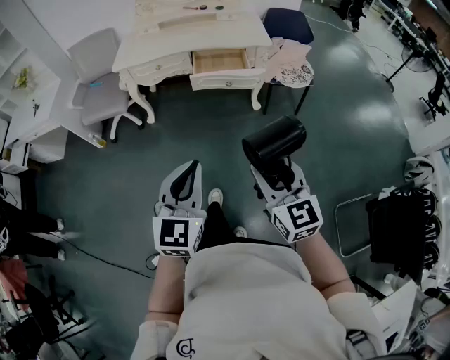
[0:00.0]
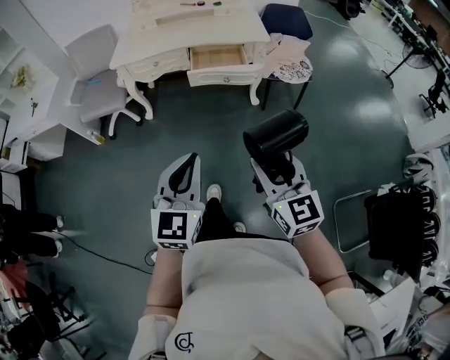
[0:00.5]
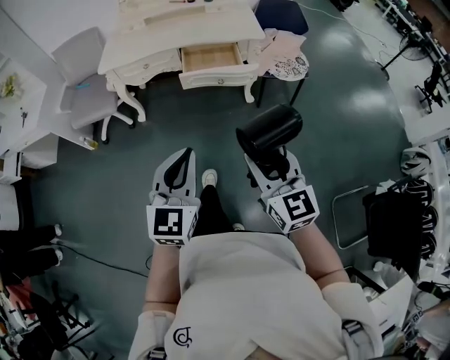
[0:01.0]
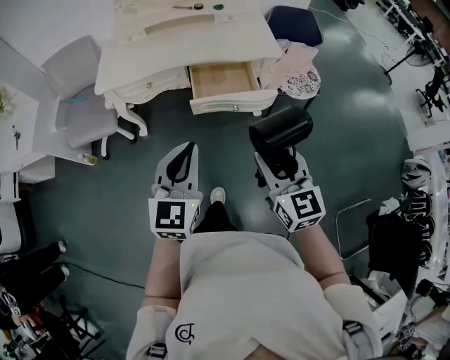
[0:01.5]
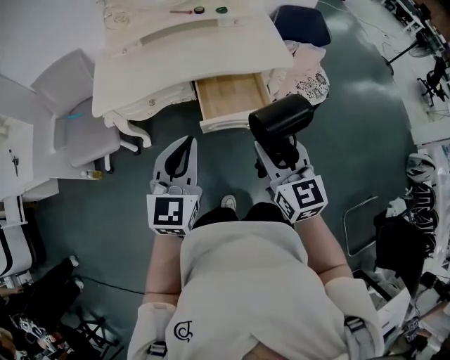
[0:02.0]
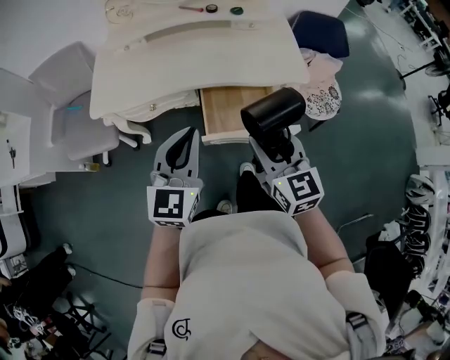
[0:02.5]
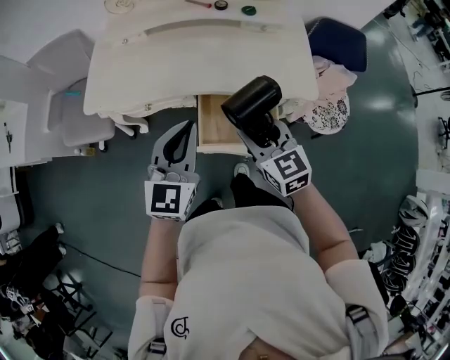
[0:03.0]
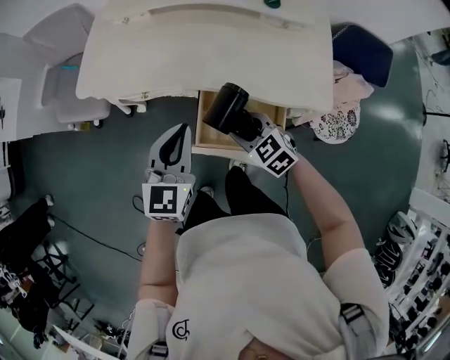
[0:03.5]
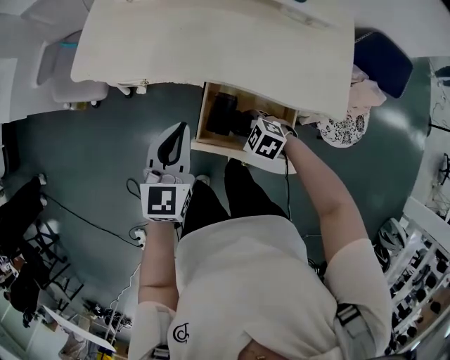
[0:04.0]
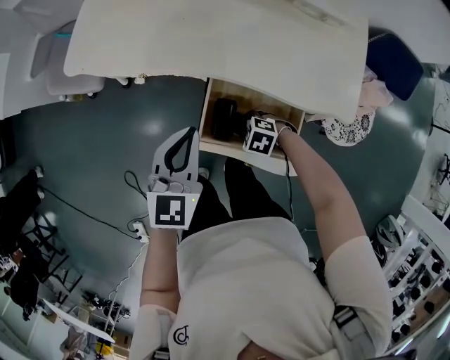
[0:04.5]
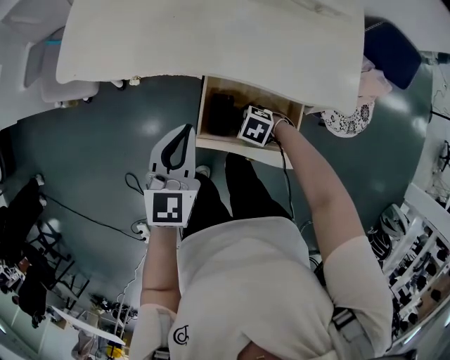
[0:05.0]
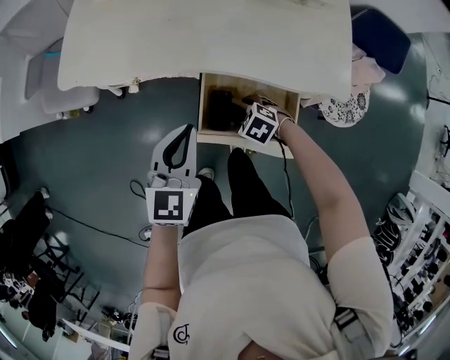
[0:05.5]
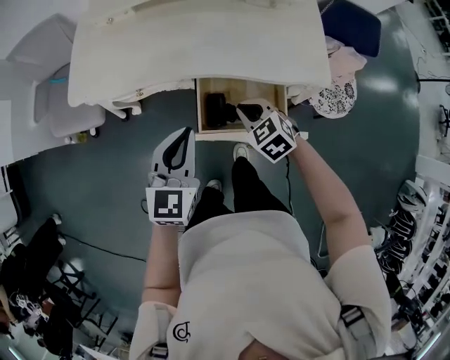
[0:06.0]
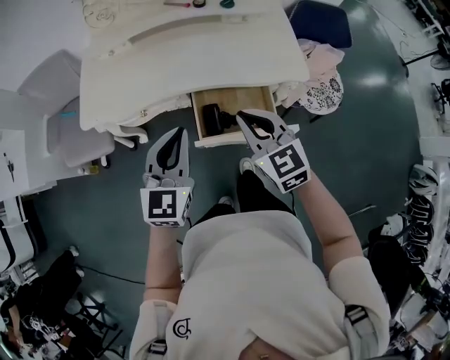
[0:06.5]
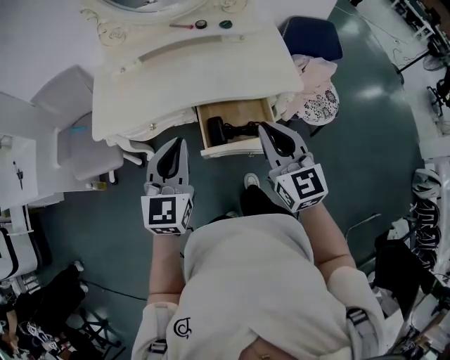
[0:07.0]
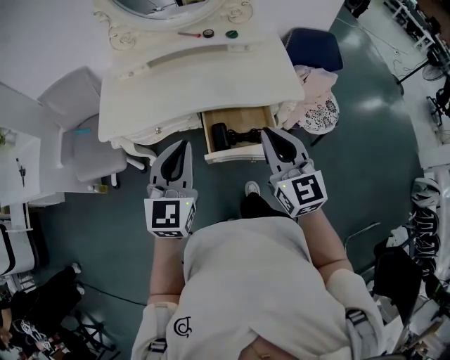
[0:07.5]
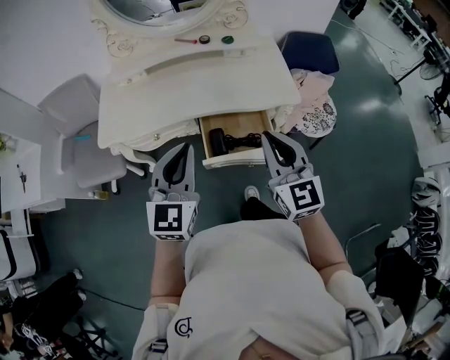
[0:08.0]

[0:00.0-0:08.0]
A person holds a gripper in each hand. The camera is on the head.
0:00.0 to 0:02.0: Both grippers move forward, some 40 cm.
0:02.0 to 0:04.0: The right gripper is displaced downward by approximately 35 cm, and points its fingers approximately 50 degrees further downward, while the left gripper shifts by about 25 cm, and swivels some 30 degrees.
0:04.0 to 0:06.0: The right gripper is displaced upward by approximately 10 cm, changes its angle by some 40 degrees, and closes.
0:06.0 to 0:08.0: The right gripper shifts about 30 cm upward and backward, and points its fingers some 50 degrees further upward; the left gripper travels upward and backward by about 15 cm.

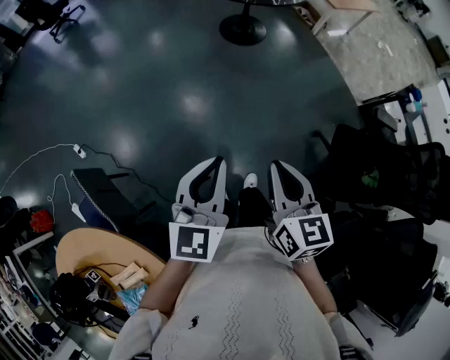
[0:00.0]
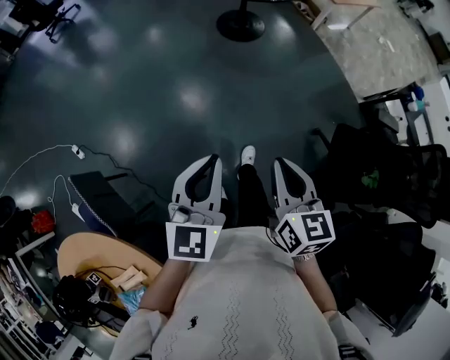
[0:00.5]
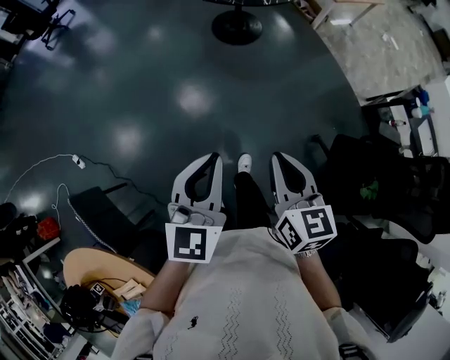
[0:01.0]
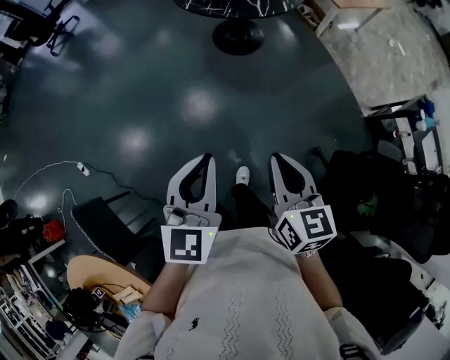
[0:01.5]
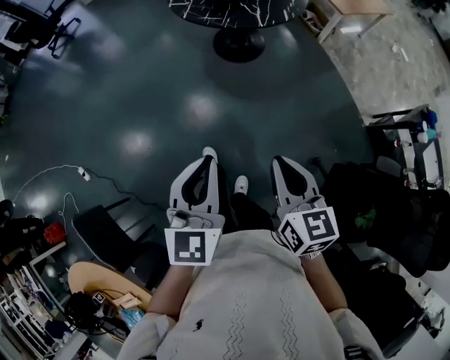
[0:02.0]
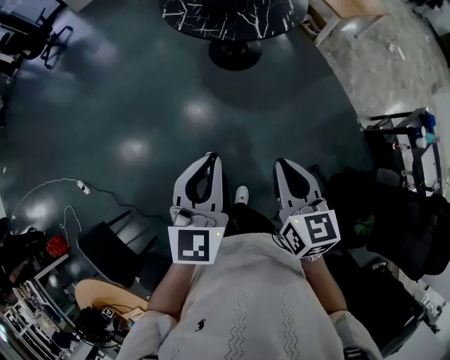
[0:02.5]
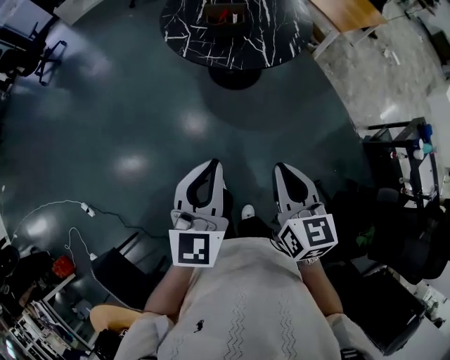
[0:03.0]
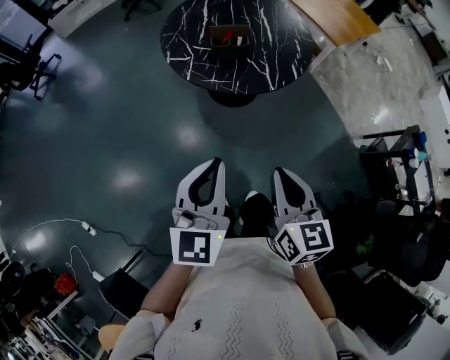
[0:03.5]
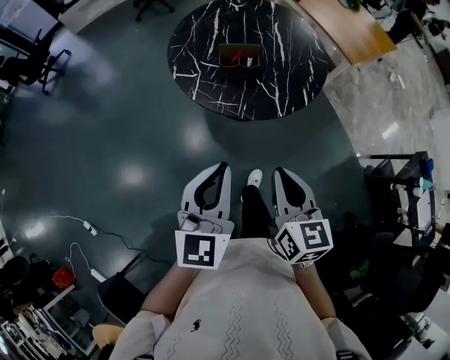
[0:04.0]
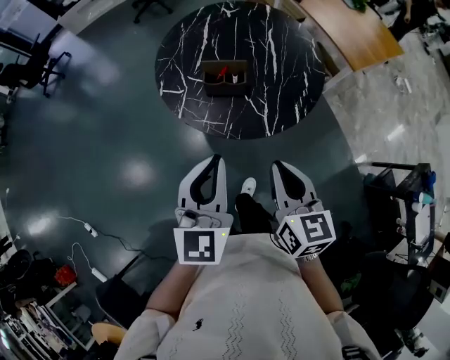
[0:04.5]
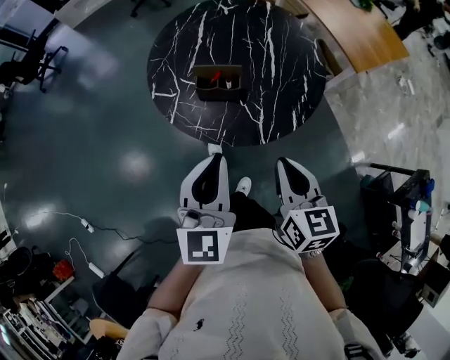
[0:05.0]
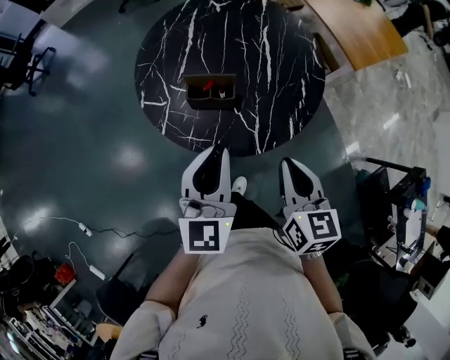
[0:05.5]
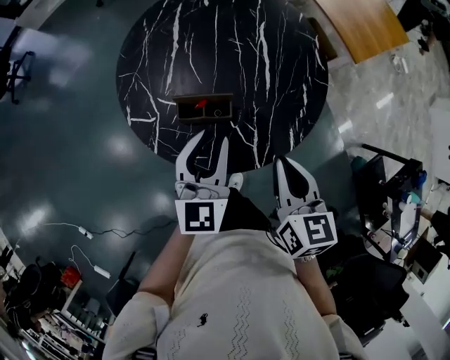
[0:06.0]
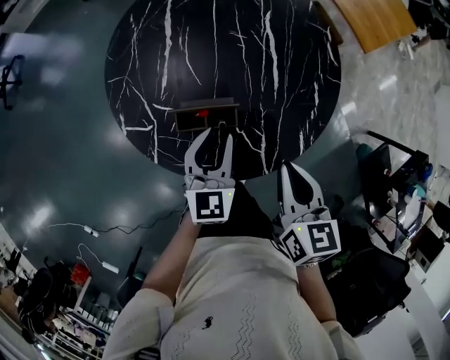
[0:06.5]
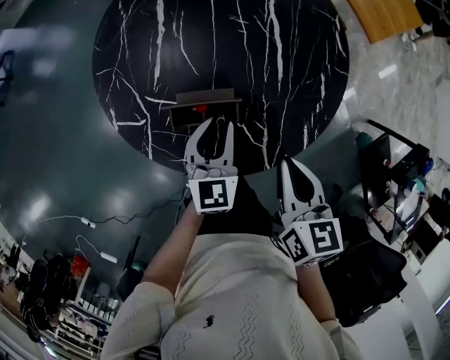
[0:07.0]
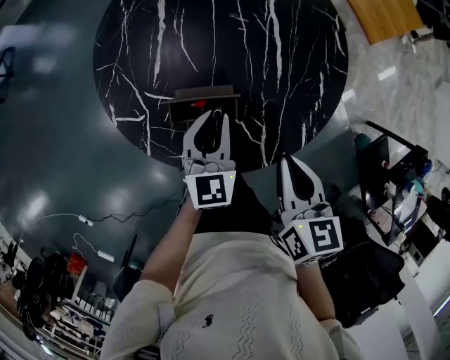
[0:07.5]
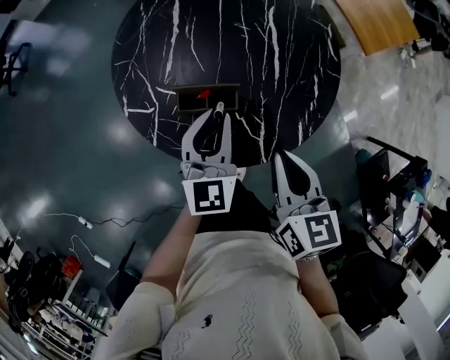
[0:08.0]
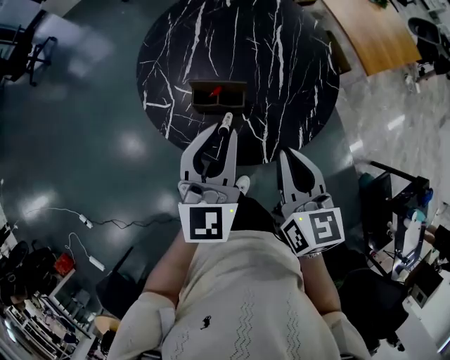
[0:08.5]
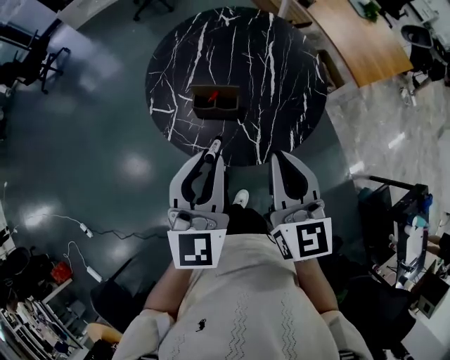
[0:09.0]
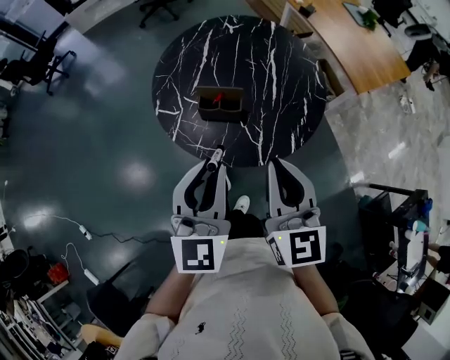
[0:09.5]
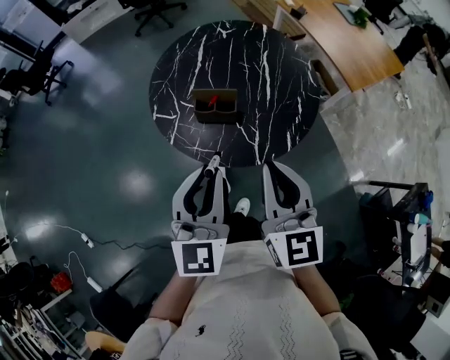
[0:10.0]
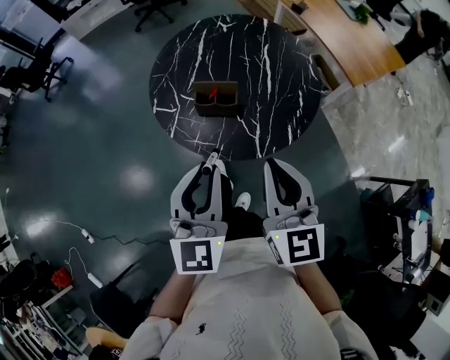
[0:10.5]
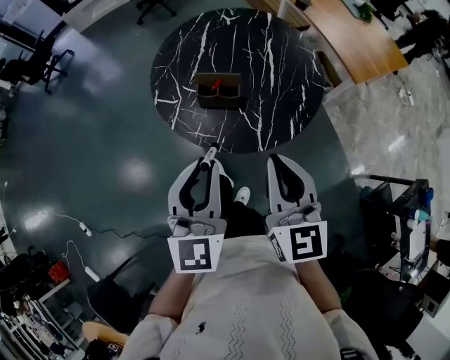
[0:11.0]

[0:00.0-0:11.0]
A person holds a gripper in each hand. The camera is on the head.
0:00.0 to 0:02.0: The grippers both shift forward and to the right by approximately 35 cm.
0:02.0 to 0:03.5: Both grippers travel together forward, approximately 30 cm.
0:03.5 to 0:05.5: The grippers both shift forward and to the right by roughly 40 cm.
0:05.5 to 0:07.5: The left gripper heads downward and forward, covering roughly 30 cm; the right gripper travels forward and downward by roughly 15 cm.
0:07.5 to 0:09.0: The left gripper goes approximately 30 cm upward and backward; the right gripper shifts some 20 cm upward and backward, and turns by roughly 40 degrees.
0:09.0 to 0:11.0: The two grippers go some 10 cm backward.

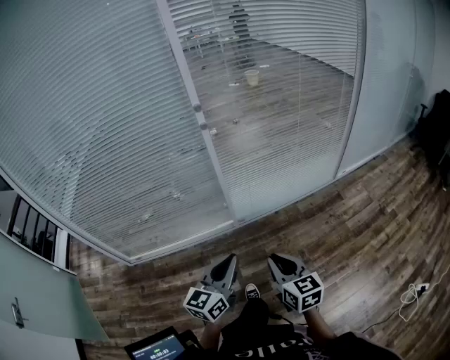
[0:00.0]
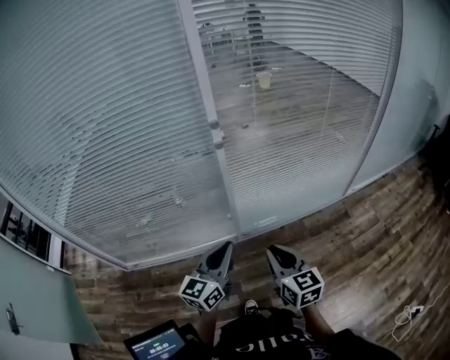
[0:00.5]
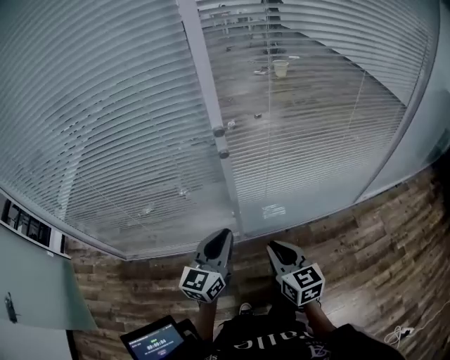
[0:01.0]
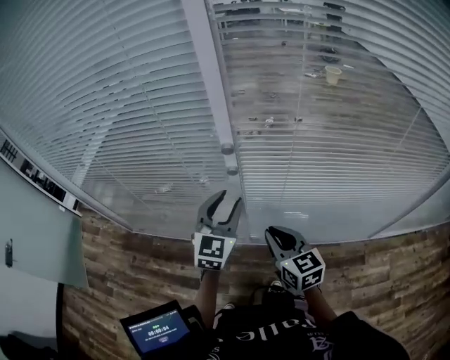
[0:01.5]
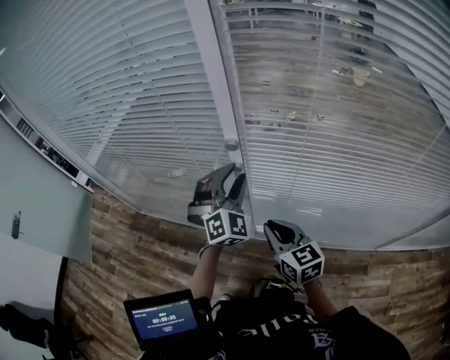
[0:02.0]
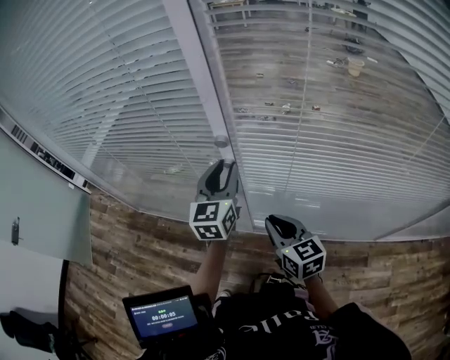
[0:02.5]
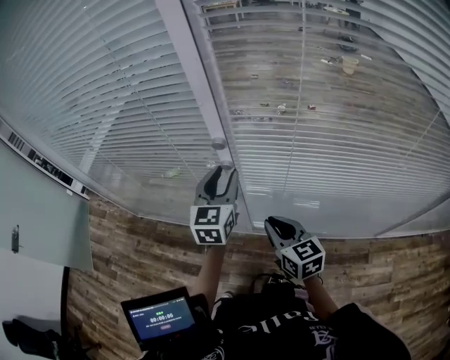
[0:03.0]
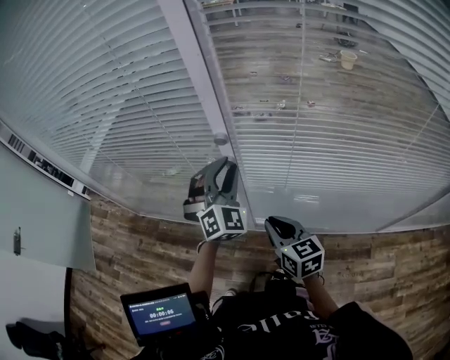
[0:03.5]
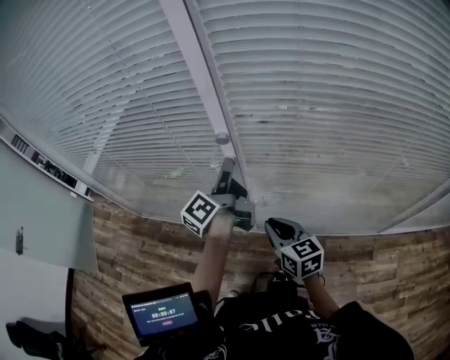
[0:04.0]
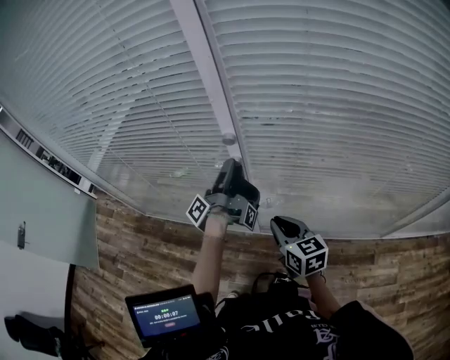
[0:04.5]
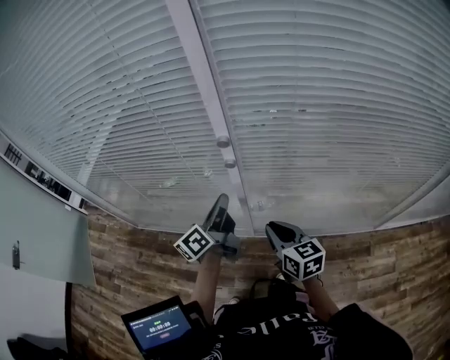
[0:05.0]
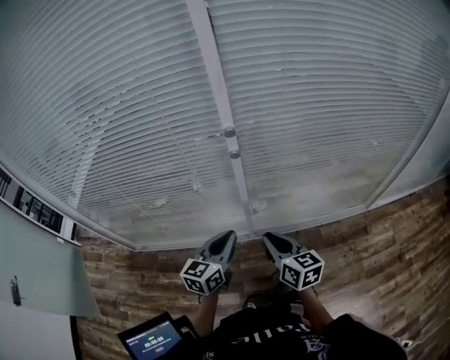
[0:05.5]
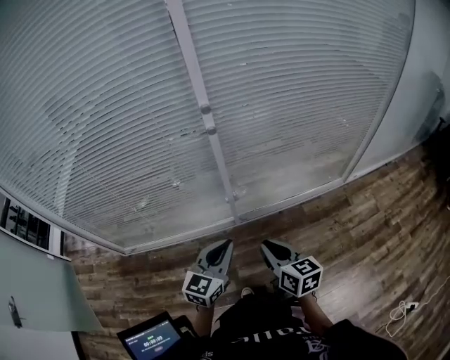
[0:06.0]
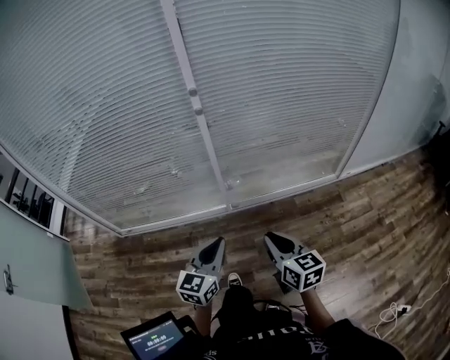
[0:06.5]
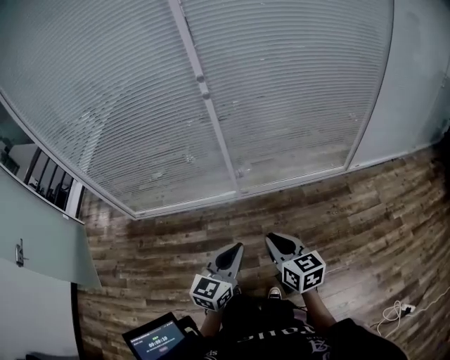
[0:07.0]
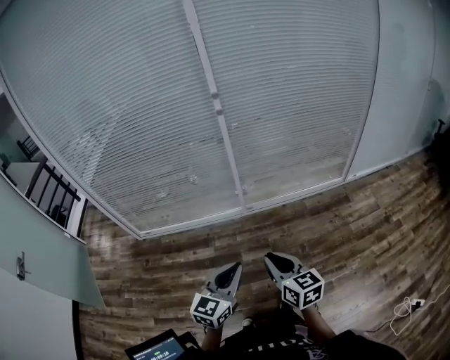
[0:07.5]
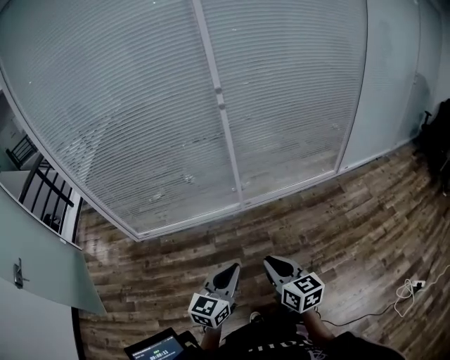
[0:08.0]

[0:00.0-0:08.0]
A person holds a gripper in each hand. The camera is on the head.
0:00.0 to 0:02.0: The pair of grippers is taken roughly 50 cm. The right gripper swivels some 30 degrees. Meanwhile the left gripper changes its angle by about 80 degrees, and opens.
0:02.0 to 0:04.0: The left gripper twists approximately 120 degrees counterclockwise, seen from behind.
0:04.0 to 0:06.0: The right gripper shifts by roughly 30 cm, and turns by approximately 30 degrees. The left gripper shifts by approximately 40 cm, changes its angle by some 80 degrees, and closes.
0:06.0 to 0:08.0: The two grippers travel together, backward, roughly 40 cm.
